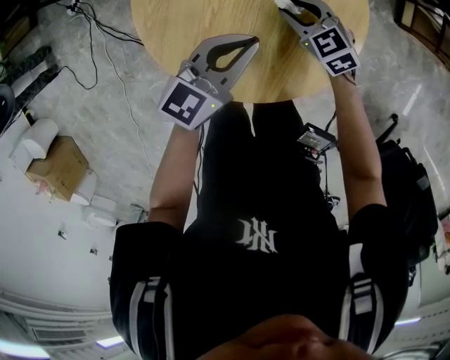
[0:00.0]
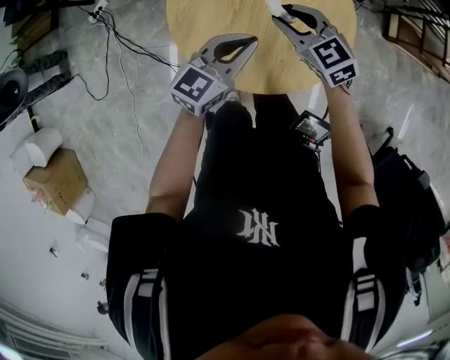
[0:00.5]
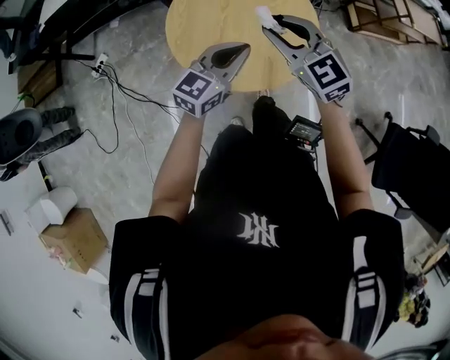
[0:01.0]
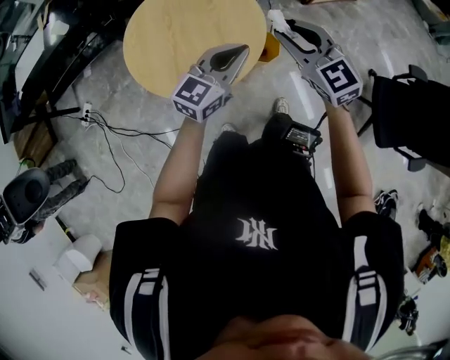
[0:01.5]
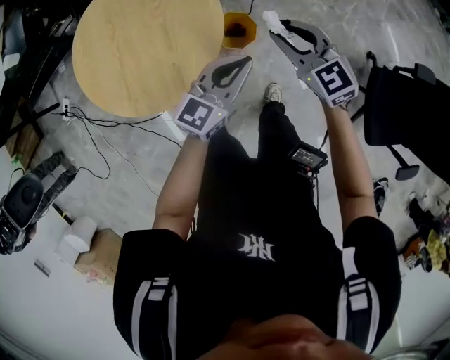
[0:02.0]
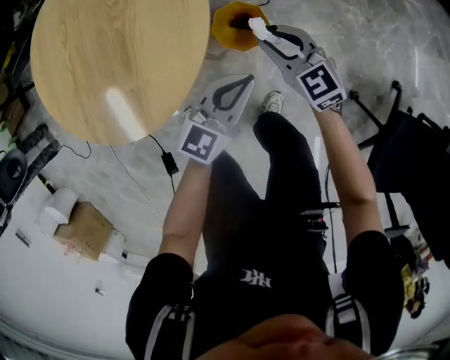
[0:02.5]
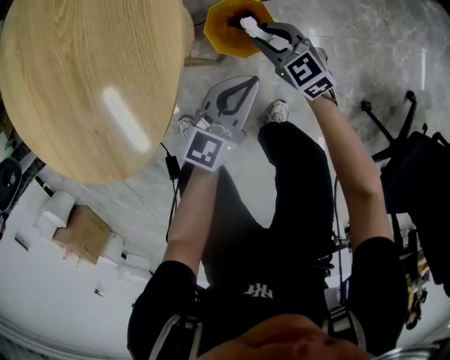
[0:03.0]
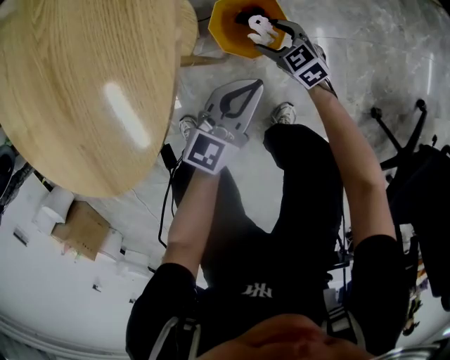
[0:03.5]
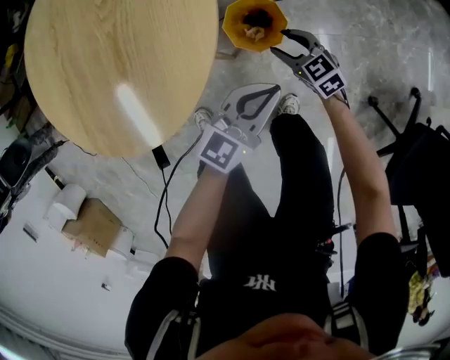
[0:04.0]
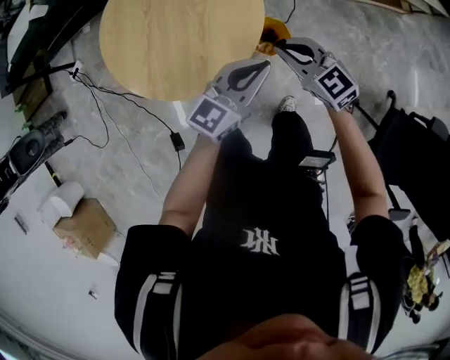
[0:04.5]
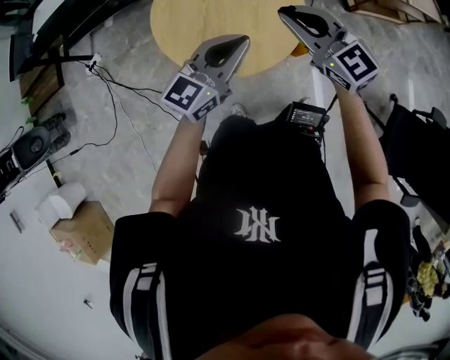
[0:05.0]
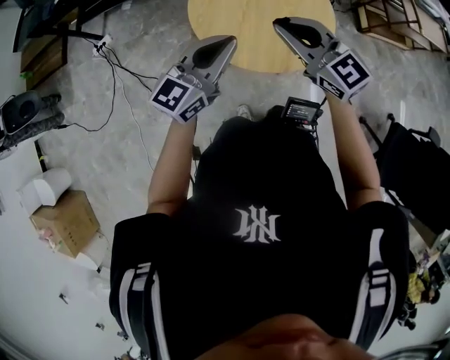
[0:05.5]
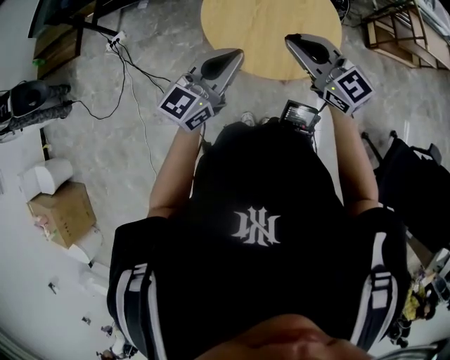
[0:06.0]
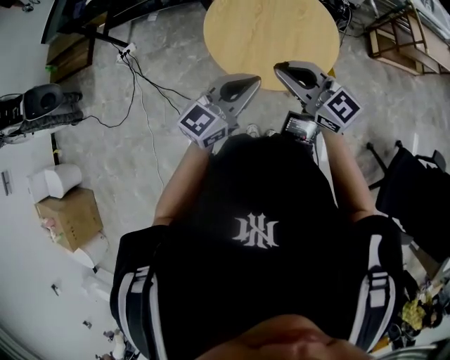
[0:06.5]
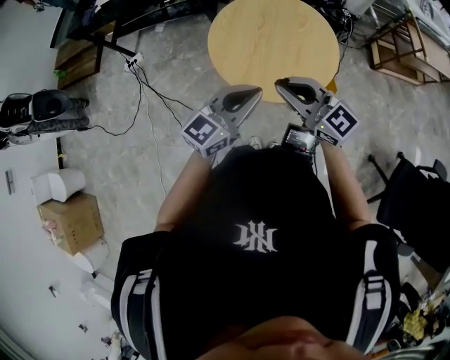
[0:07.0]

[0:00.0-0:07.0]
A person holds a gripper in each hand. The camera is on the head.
0:00.0 to 0:02.0: The right gripper shifts by about 35 cm, and changes its angle by roughly 30 degrees. The left gripper goes upward and returns, approximately 10 cm each way, and rotates some 20 degrees.
0:02.0 to 0:03.5: The right gripper moves downward, some 50 cm, turns by about 30 degrees, and opens its fingers. The left gripper shifts about 35 cm downward.
0:03.5 to 0:05.0: The left gripper goes approximately 60 cm upward and to the left, while the right gripper heads upward, covering roughly 70 cm, angles its fingers upward, by roughly 30 degrees, and closes.
0:05.0 to 0:07.0: Both grippers travel together to the left and backward, some 15 cm.

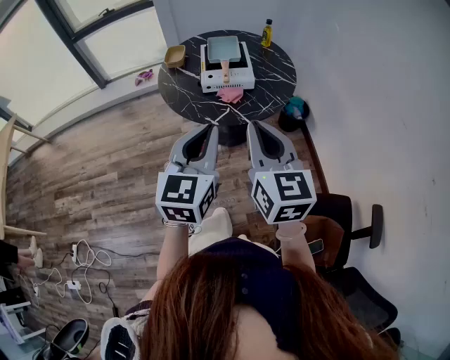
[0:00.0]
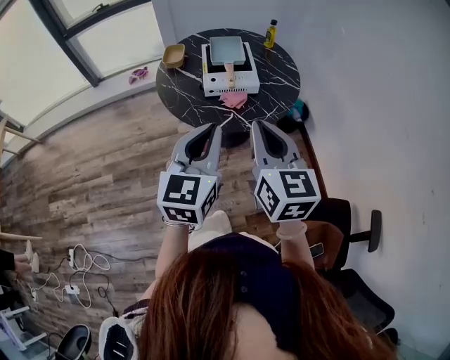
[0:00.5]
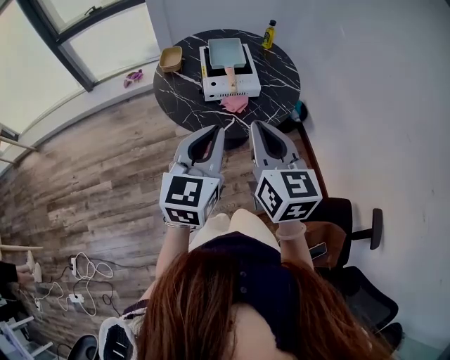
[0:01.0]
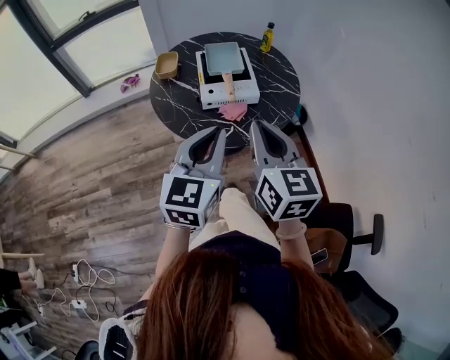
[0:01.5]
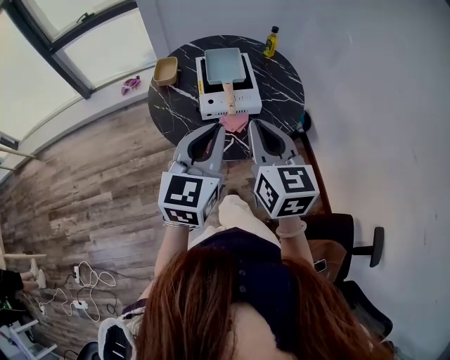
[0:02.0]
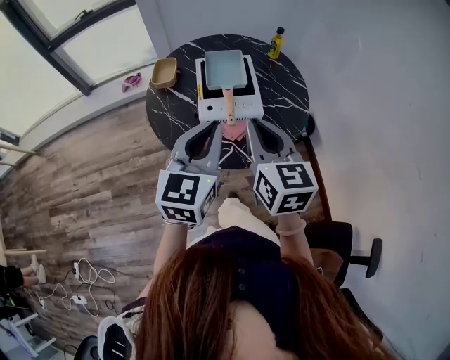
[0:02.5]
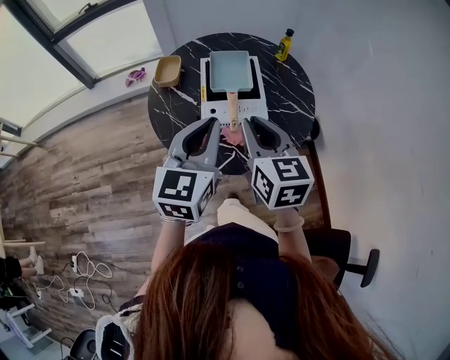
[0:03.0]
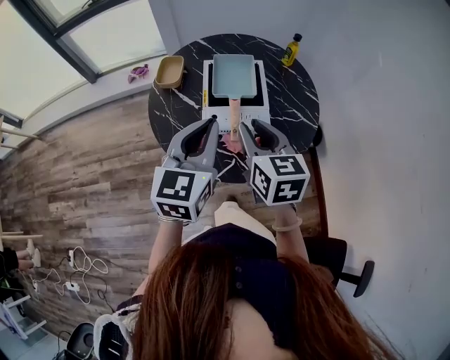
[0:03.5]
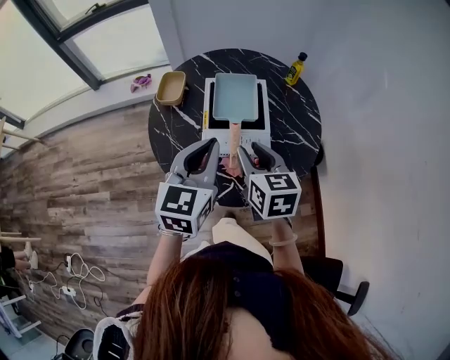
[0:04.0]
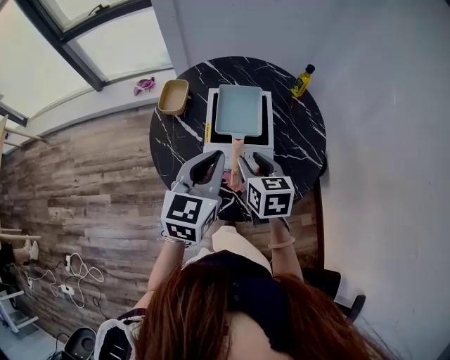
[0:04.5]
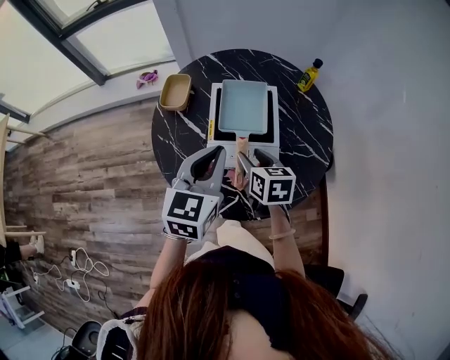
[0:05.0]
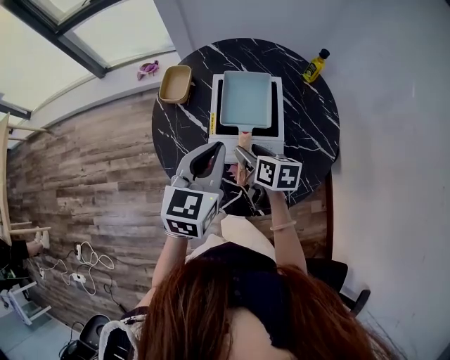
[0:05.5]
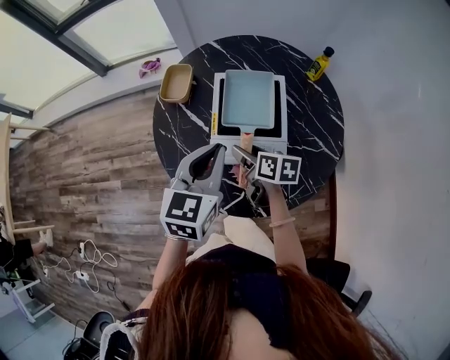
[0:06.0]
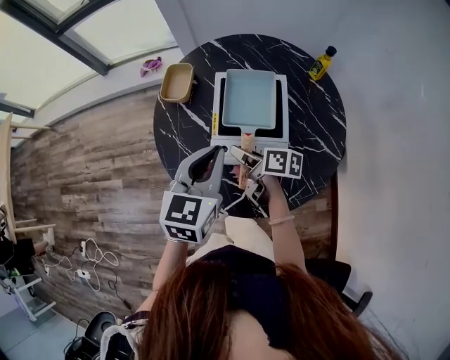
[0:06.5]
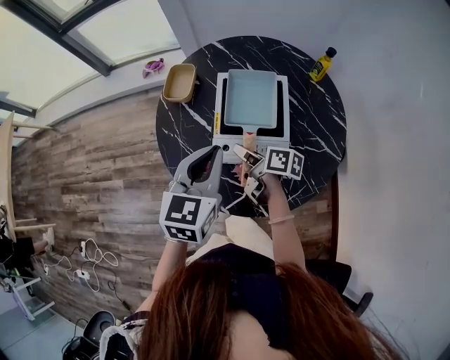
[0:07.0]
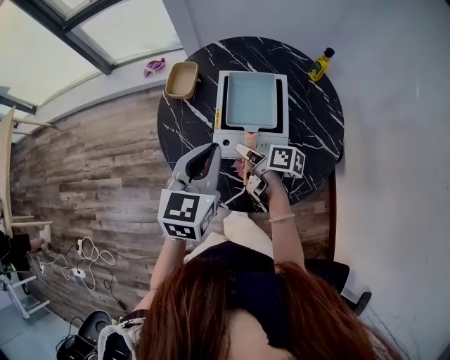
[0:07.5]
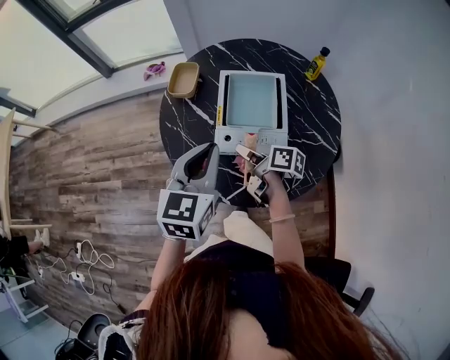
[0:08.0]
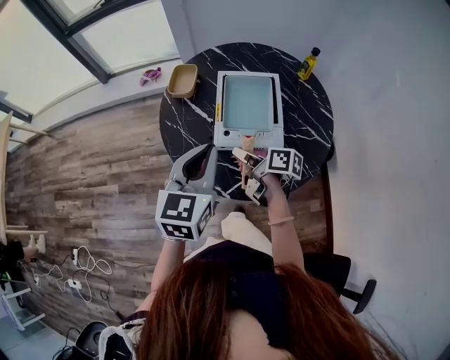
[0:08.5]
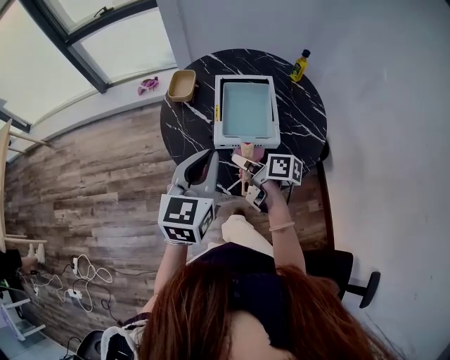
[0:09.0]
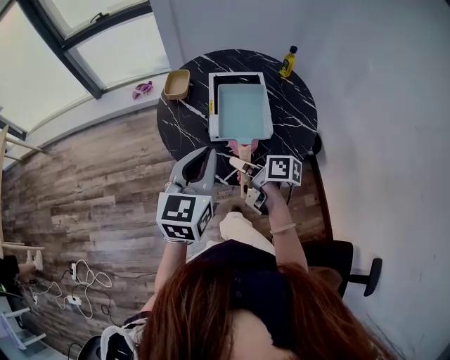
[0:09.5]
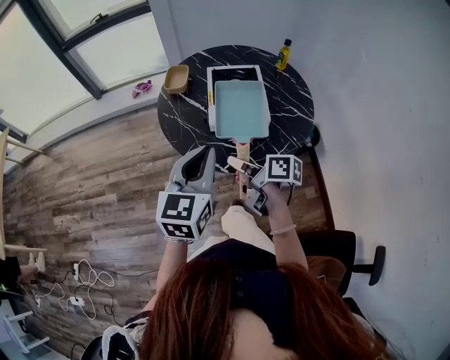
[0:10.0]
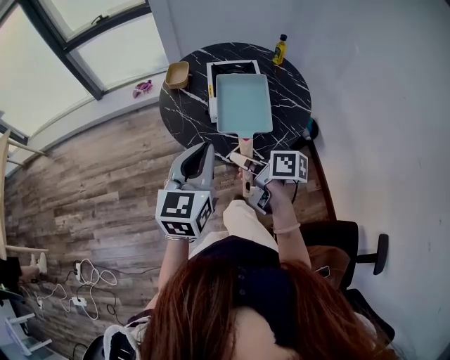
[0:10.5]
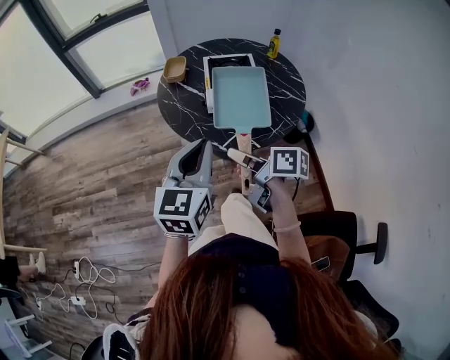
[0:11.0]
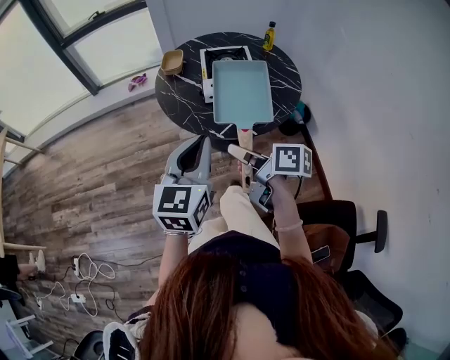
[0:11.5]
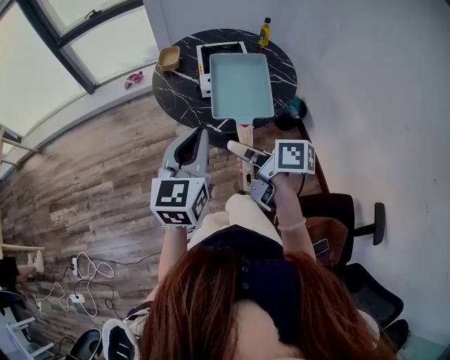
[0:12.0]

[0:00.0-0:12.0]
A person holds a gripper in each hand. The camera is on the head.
0:00.0 to 0:02.0: Both grippers travel together forward, roughly 20 cm.
0:02.0 to 0:04.0: The left gripper heads forward, covering some 20 cm; the right gripper shifts approximately 20 cm forward and downward, turns by about 20 degrees, and opens its fingers.
0:04.0 to 0:06.0: The right gripper is displaced downward and forward by about 20 cm, swivels about 40 degrees, and opens, while the left gripper moves forward and downward, about 10 cm.
0:06.0 to 0:08.0: The right gripper changes place by approximately 5 cm, turns by roughly 20 degrees, and closes its fingers, while the left gripper ends up approximately 5 cm from where it was.
0:08.0 to 0:10.0: The left gripper heads backward, covering about 20 cm. The right gripper travels backward and upward by some 20 cm.
0:10.0 to 0:12.0: The right gripper is displaced backward and upward by approximately 20 cm. Meanwhile the left gripper heads backward, covering roughly 15 cm.

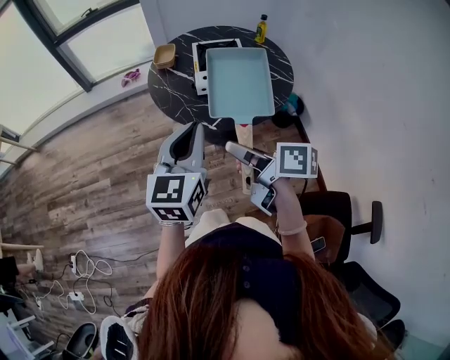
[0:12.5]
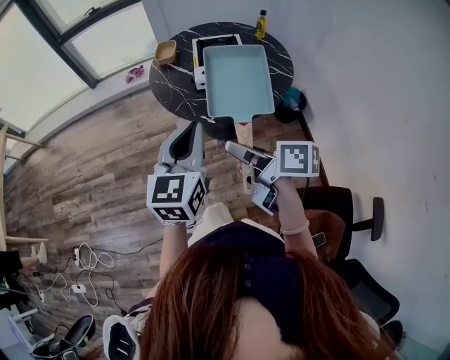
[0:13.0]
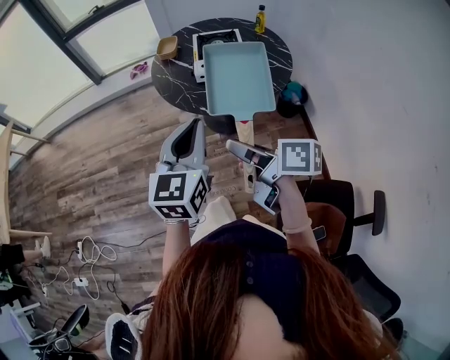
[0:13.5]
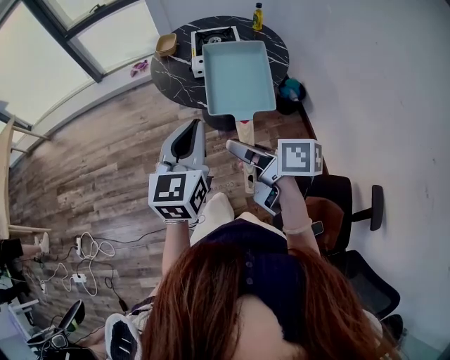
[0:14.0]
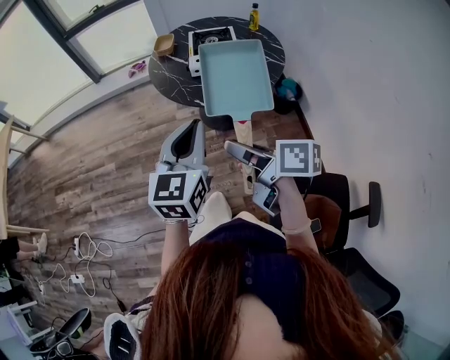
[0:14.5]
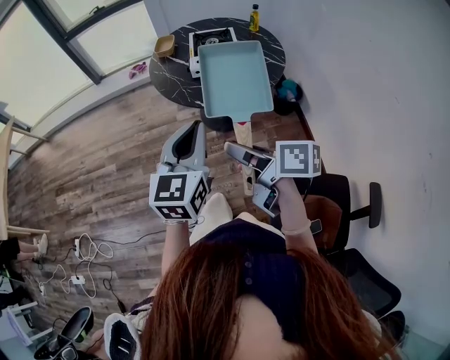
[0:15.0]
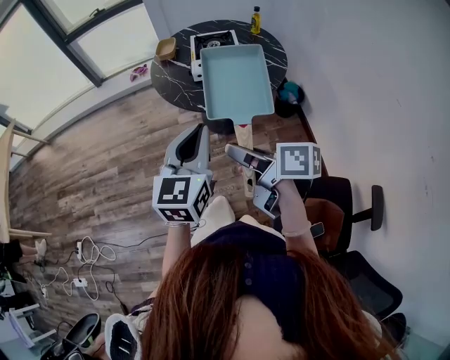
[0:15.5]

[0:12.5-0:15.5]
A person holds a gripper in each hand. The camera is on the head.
0:12.5 to 0:14.0: Both grippers travel together backward, roughly 10 cm.
0:14.0 to 0:15.5: The grippers make only small movements.

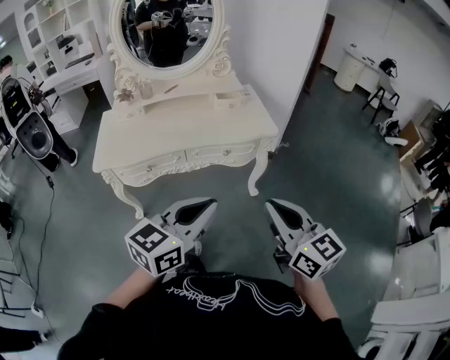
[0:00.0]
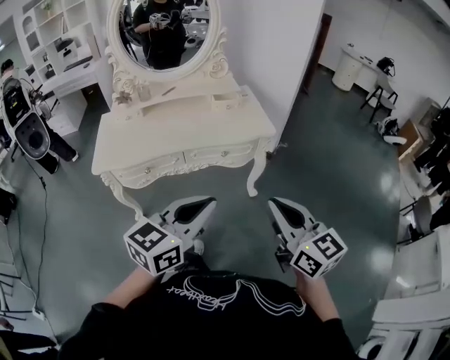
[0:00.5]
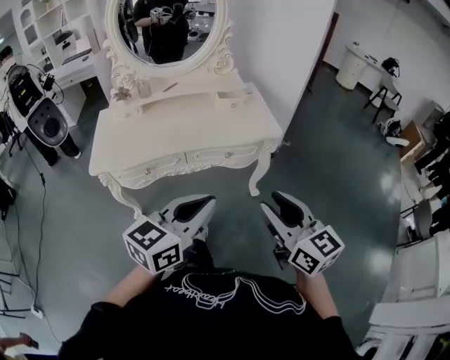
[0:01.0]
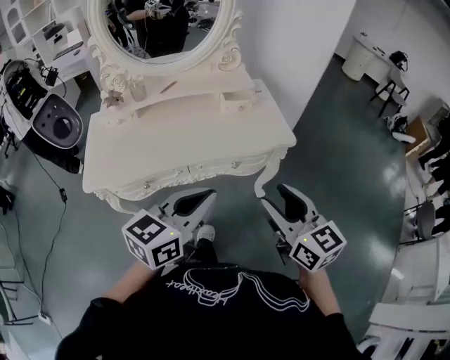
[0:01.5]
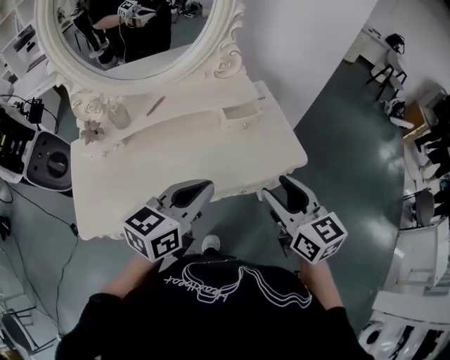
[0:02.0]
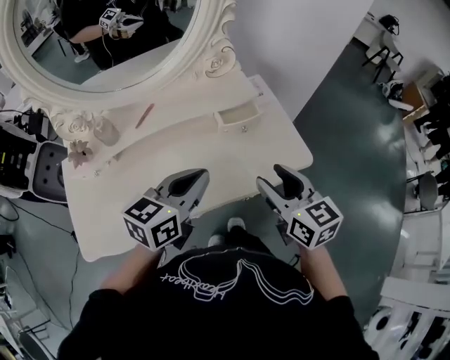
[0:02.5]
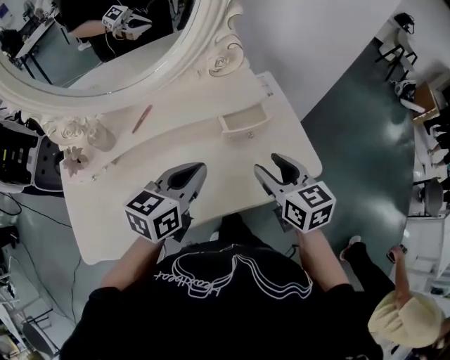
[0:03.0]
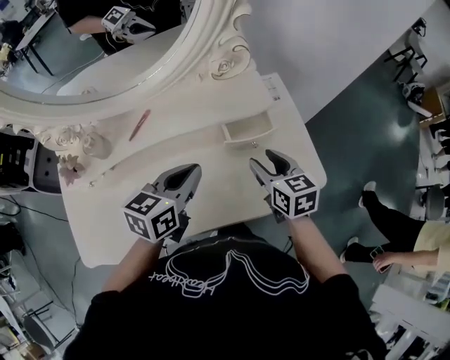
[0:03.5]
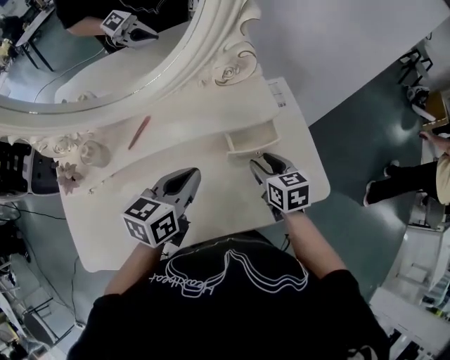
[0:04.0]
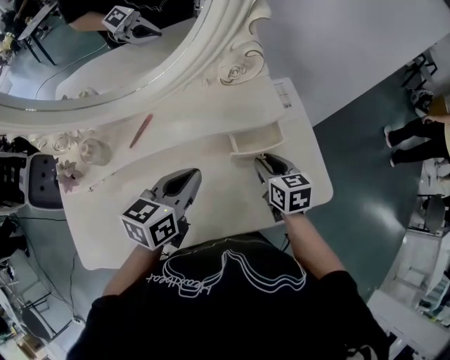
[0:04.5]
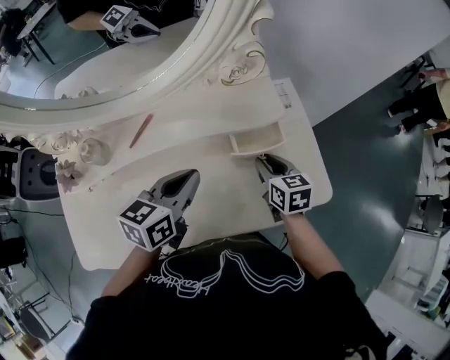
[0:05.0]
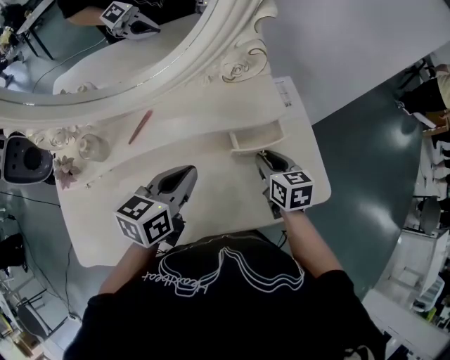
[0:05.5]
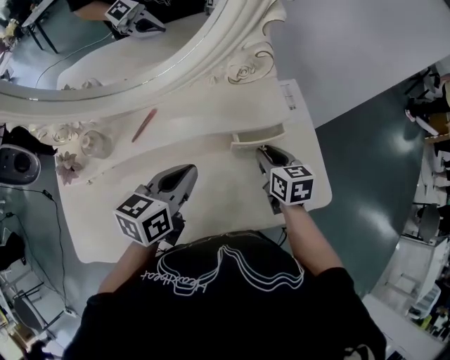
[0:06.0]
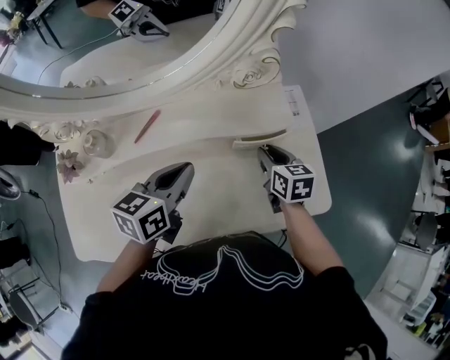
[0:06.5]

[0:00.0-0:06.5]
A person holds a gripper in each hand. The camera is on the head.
0:00.0 to 0:02.0: Both grippers move forward, some 35 cm. The right gripper opens.
0:02.0 to 0:04.5: Both grippers move forward and downward, about 30 cm. The right gripper swivels roughly 30 degrees, and closes its fingers.
0:04.5 to 0:06.5: There are only small adjustments of the grippers.
